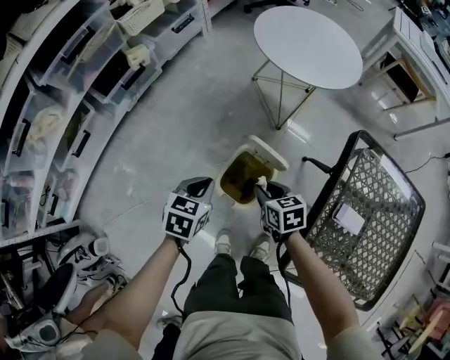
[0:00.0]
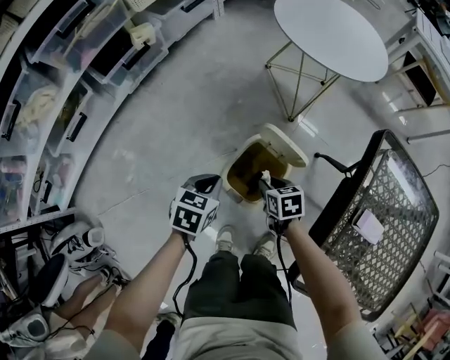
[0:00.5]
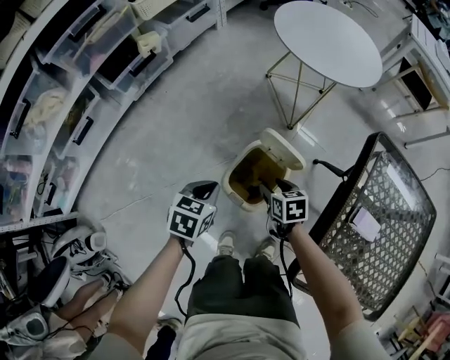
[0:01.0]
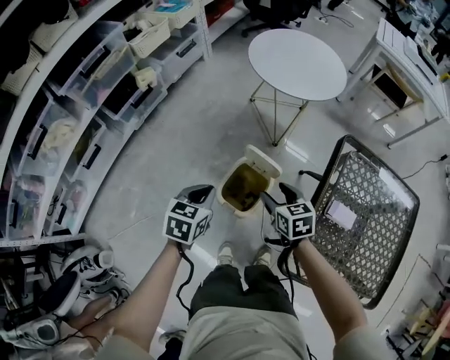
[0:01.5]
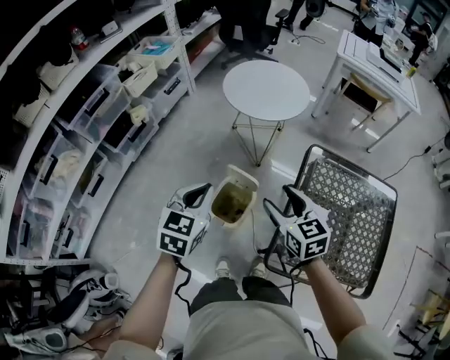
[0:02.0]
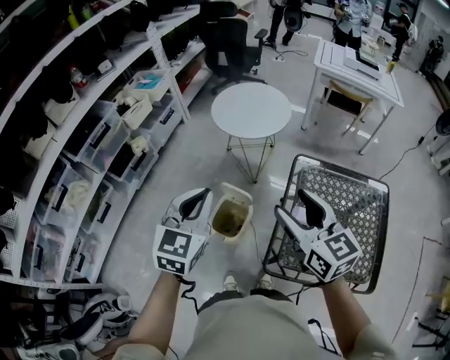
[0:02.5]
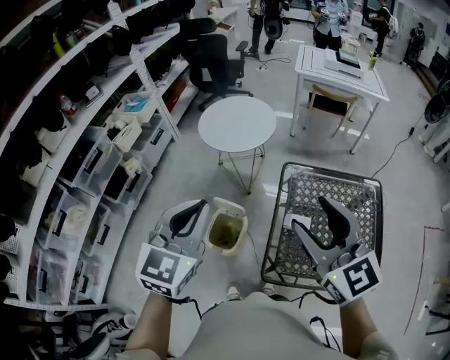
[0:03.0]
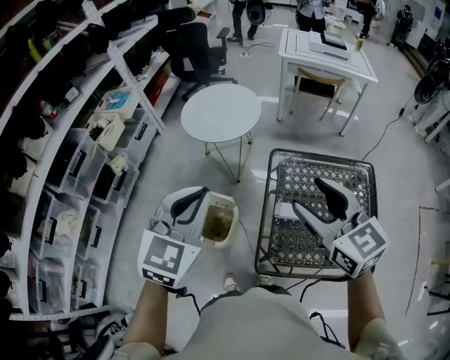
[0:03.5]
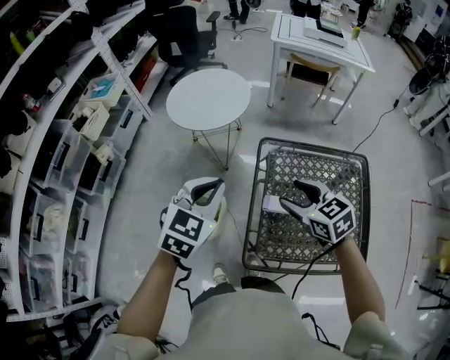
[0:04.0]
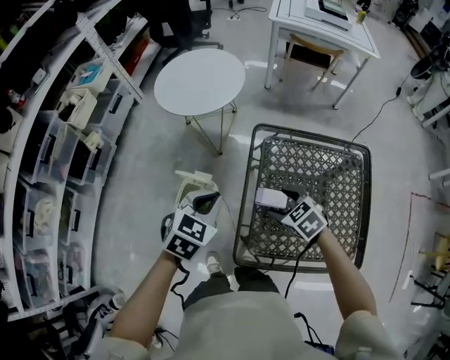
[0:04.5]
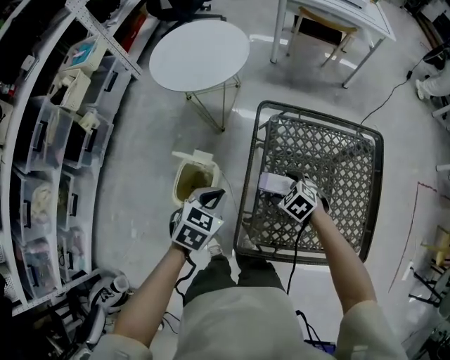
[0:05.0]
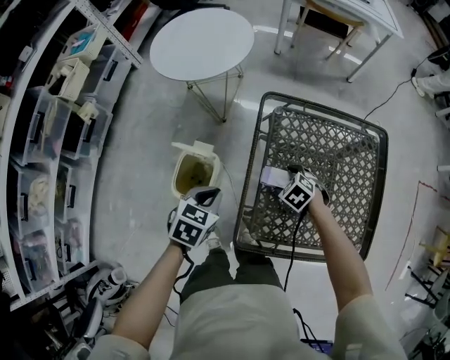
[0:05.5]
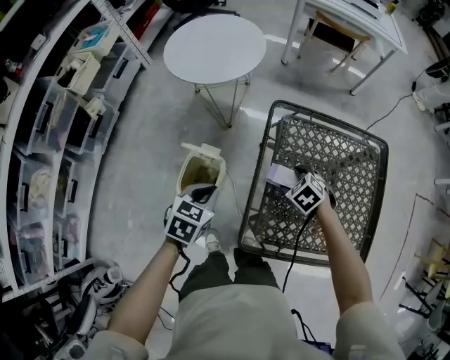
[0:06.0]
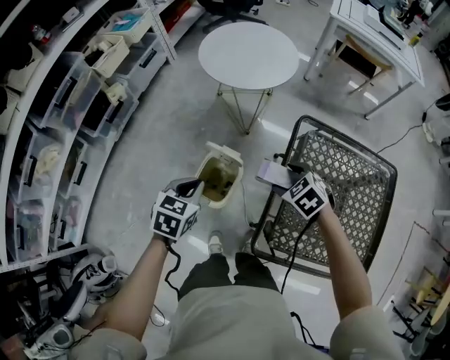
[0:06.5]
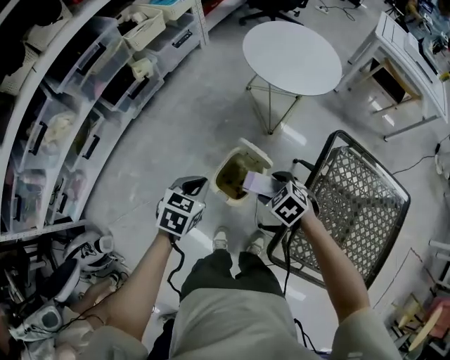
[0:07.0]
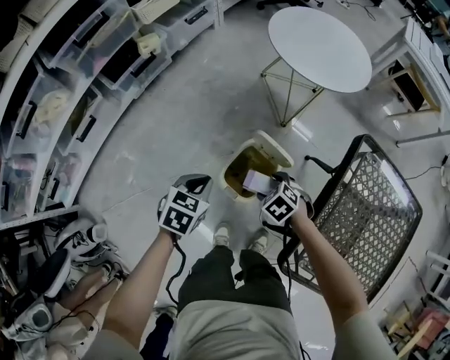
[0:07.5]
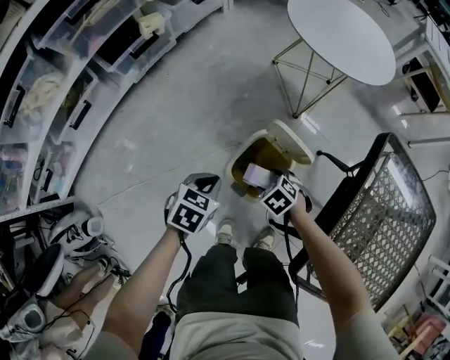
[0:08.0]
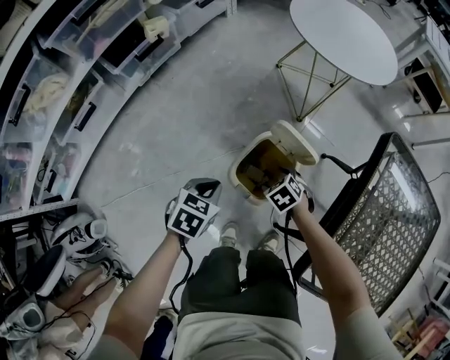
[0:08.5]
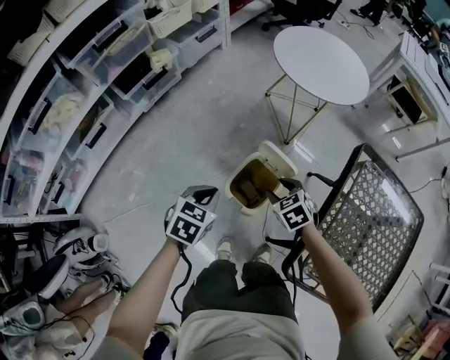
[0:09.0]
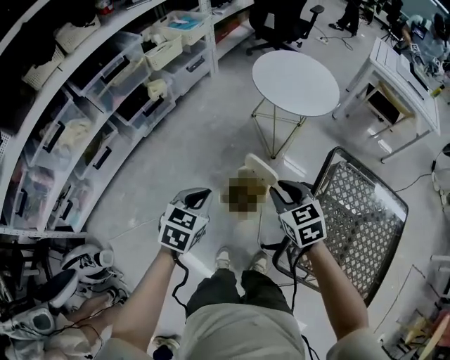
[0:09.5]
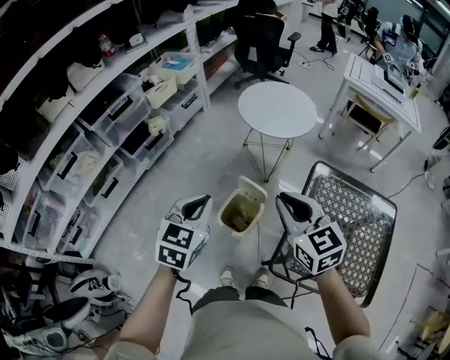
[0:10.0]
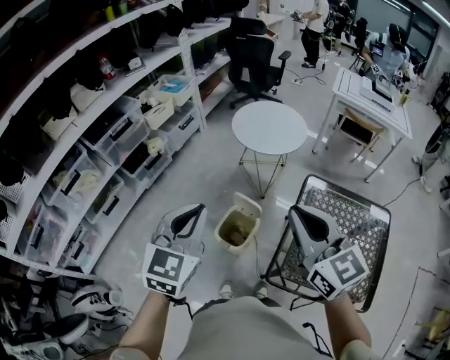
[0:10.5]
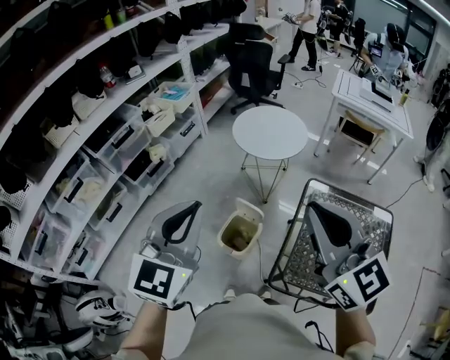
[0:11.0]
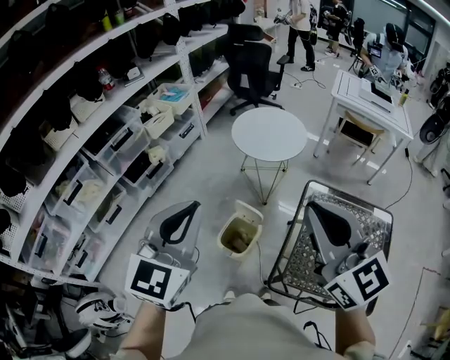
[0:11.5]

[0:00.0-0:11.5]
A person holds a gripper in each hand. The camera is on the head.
0:00.0 to 0:02.0: The grippers both shift upward by approximately 30 cm. The right gripper swivels approximately 30 degrees, and opens up, while the left gripper rotates some 20 degrees.
0:02.0 to 0:04.0: Both grippers move to the right, about 20 cm. The left gripper swivels approximately 30 degrees. The right gripper moves approximately 25 cm upward and comes back.
0:04.0 to 0:06.0: The grippers both shift downward by about 25 cm. The right gripper angles its fingers downward, by about 40 degrees. The left gripper swivels approximately 30 degrees.
0:06.0 to 0:07.5: The left gripper moves some 30 cm, and rotates about 20 degrees. The right gripper shifts by approximately 35 cm, and changes its angle by some 20 degrees.
0:07.5 to 0:09.5: The right gripper travels upward by roughly 25 cm, tips its fingers upward by approximately 30 degrees, and closes its fingers. The left gripper goes about 15 cm upward.
0:09.5 to 0:11.5: The grippers both shift upward by some 40 cm. The left gripper tilts its fingers about 30 degrees upward. The right gripper tilts its fingers roughly 40 degrees upward.

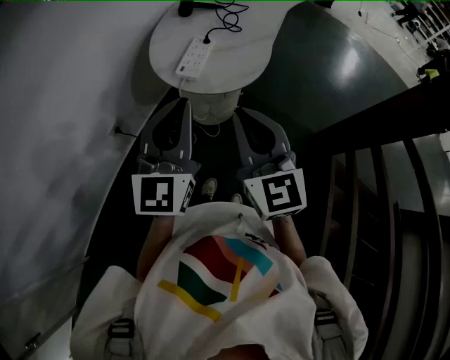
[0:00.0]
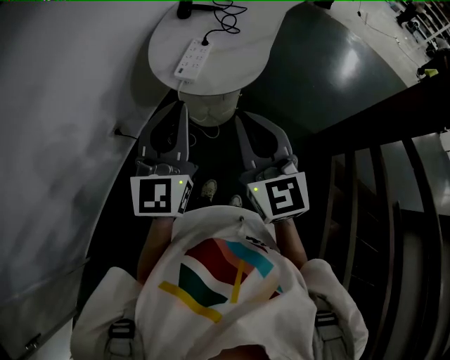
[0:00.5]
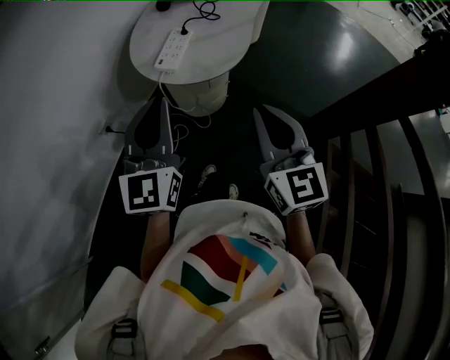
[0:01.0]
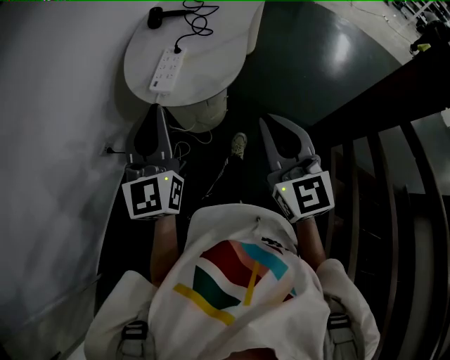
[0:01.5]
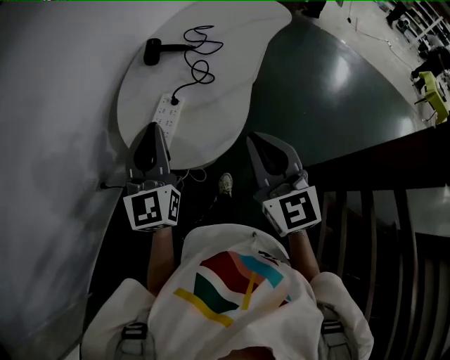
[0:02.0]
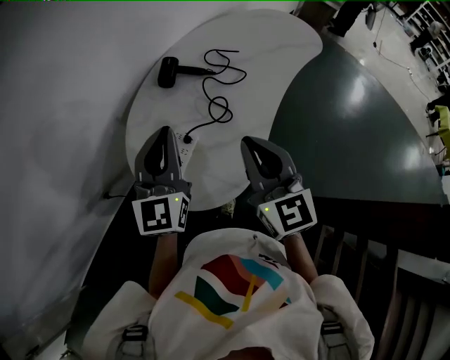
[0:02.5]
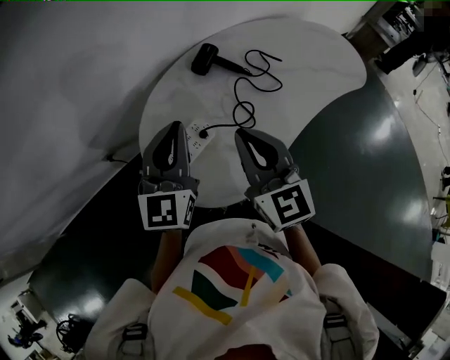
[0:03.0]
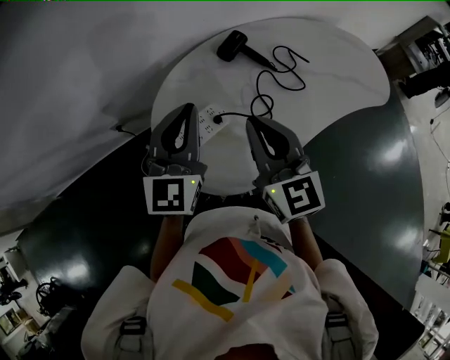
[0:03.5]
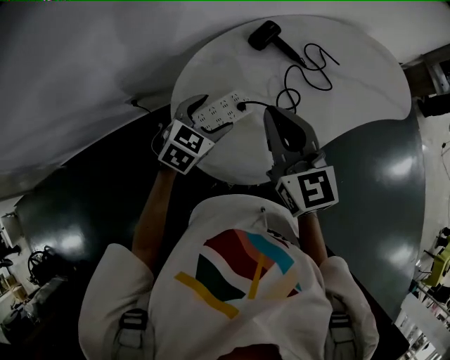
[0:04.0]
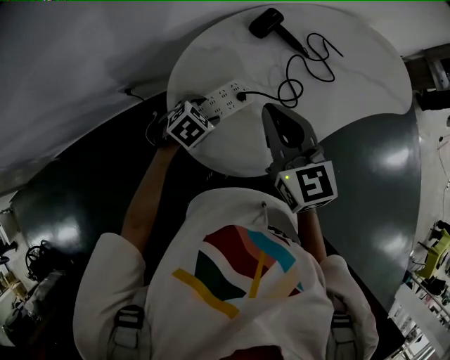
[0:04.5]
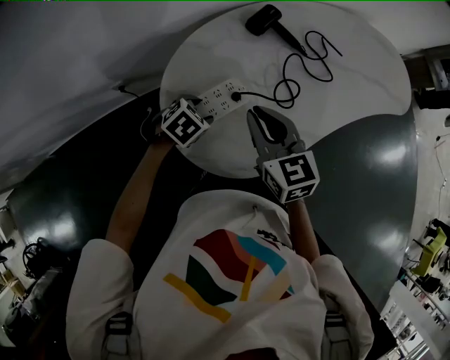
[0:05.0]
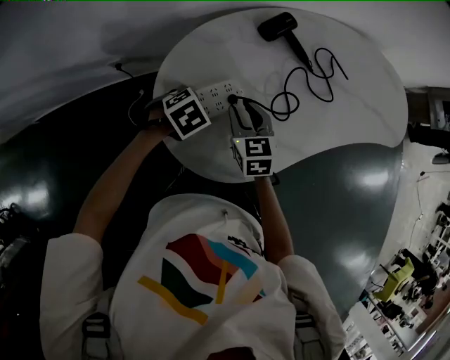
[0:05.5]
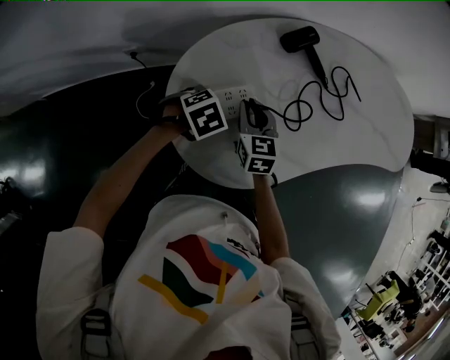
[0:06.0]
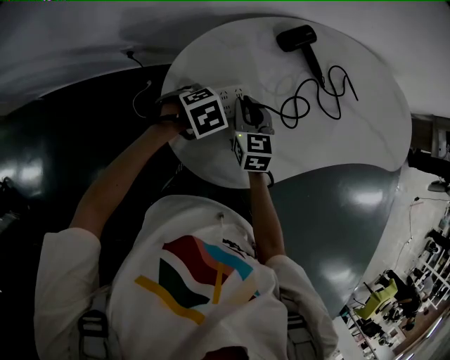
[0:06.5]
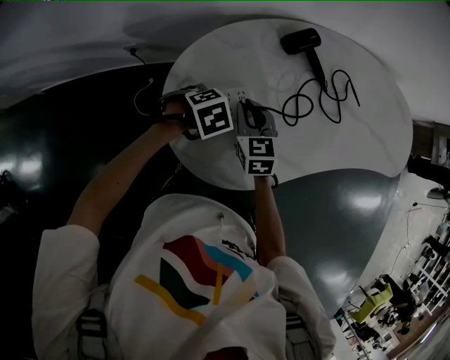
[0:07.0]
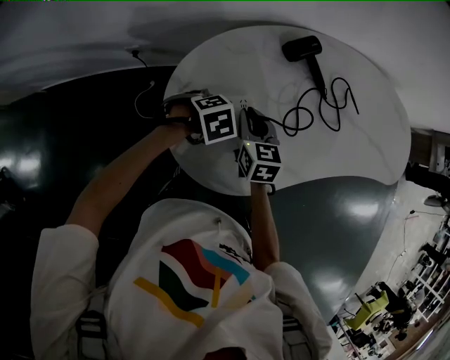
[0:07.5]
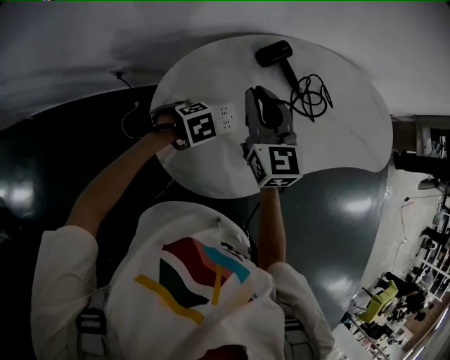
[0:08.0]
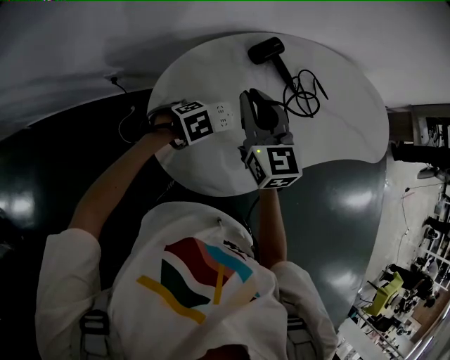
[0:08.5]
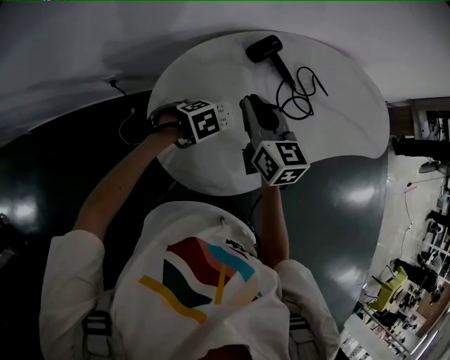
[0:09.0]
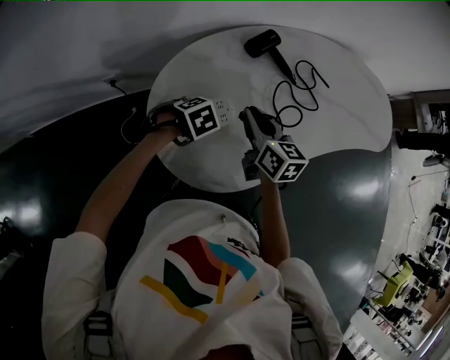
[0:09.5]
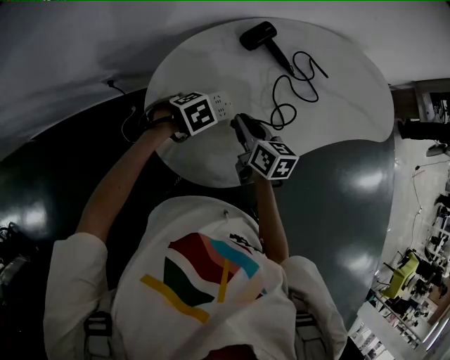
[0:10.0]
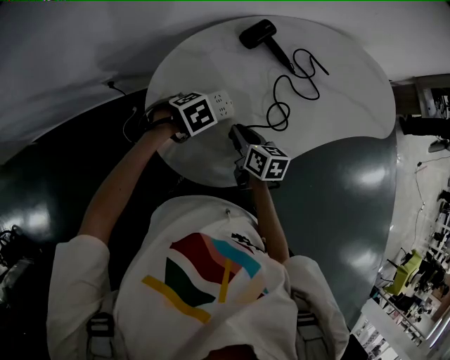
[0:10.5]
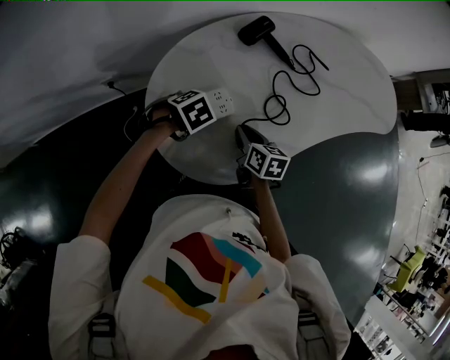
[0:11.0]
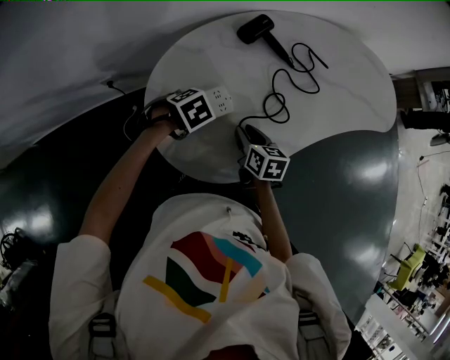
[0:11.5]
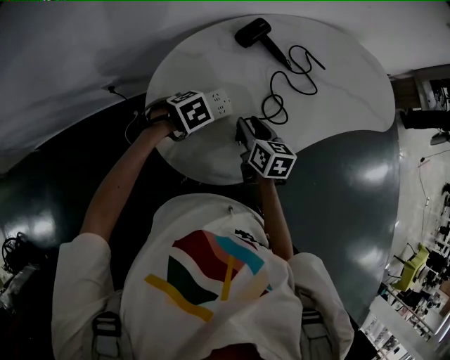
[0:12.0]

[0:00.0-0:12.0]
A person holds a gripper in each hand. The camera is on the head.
0:00.0 to 0:02.0: The right gripper moves forward and to the right, roughly 25 cm. Meanwhile the left gripper goes approximately 25 cm forward.
0:02.0 to 0:04.0: The left gripper moves downward, about 15 cm, tips its fingers downward by about 40 degrees, and opens up; the right gripper shifts by some 25 cm, and turns by about 40 degrees.
0:04.0 to 0:06.0: The left gripper shifts approximately 10 cm downward, and angles its fingers downward, by some 40 degrees. The right gripper travels downward by approximately 25 cm, and rotates approximately 20 degrees.
0:06.0 to 0:08.0: The right gripper moves upward, some 20 cm, and turns by some 20 degrees.
0:08.0 to 0:10.0: The right gripper shifts some 15 cm downward, and changes its angle by some 40 degrees.
0:10.0 to 0:12.0: The right gripper opens its fingers.

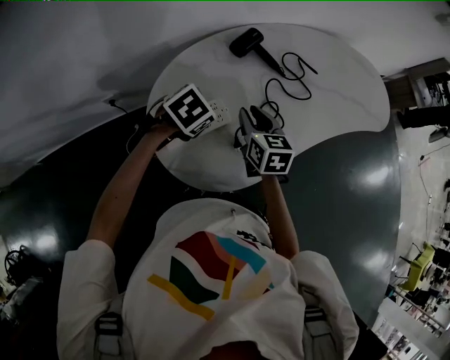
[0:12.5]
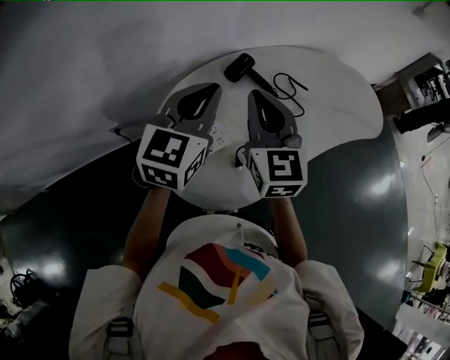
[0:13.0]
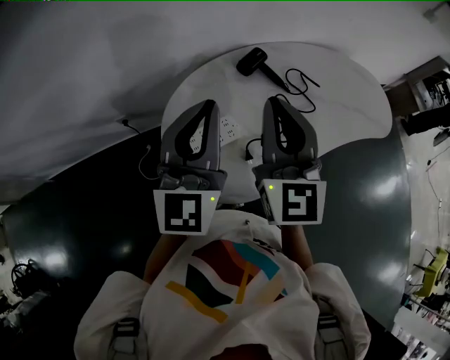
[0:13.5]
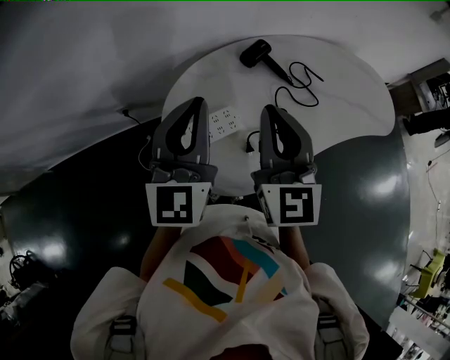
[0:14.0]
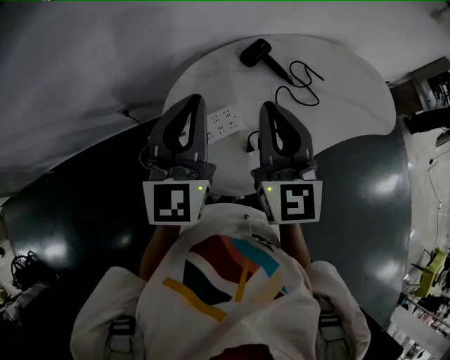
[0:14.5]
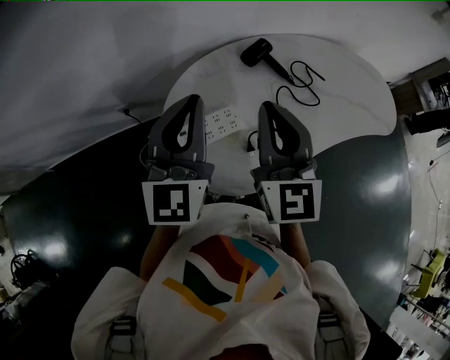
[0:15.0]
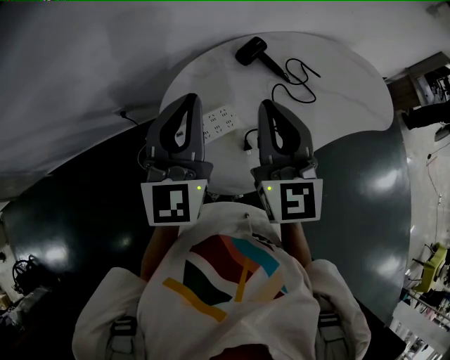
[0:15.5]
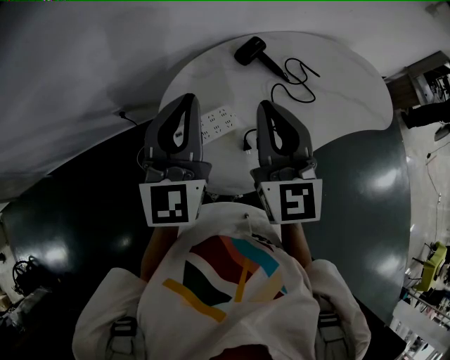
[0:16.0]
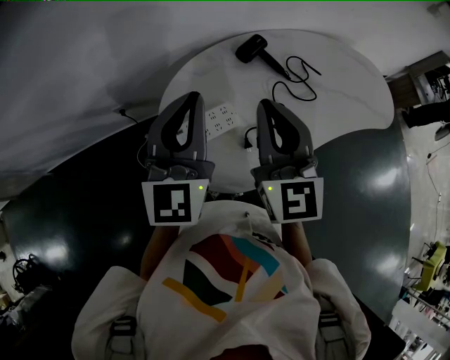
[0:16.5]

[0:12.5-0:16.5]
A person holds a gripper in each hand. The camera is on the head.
0:12.5 to 0:14.5: The two grippers go about 25 cm upward. The right gripper rotates some 40 degrees, and closes up, while the left gripper angles its fingers upward, by about 70 degrees.
0:14.5 to 0:16.5: Both grippers stay about where they are.
